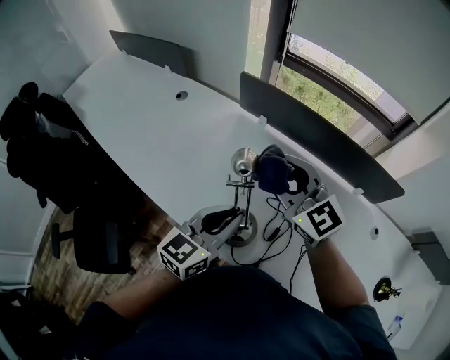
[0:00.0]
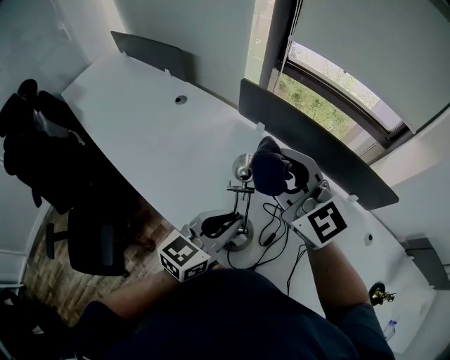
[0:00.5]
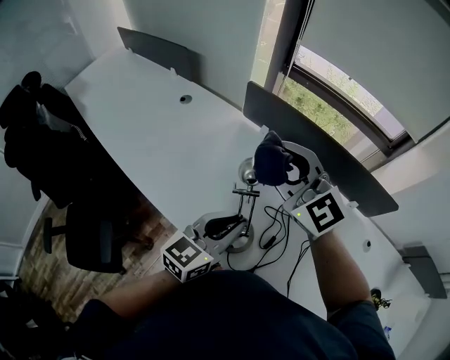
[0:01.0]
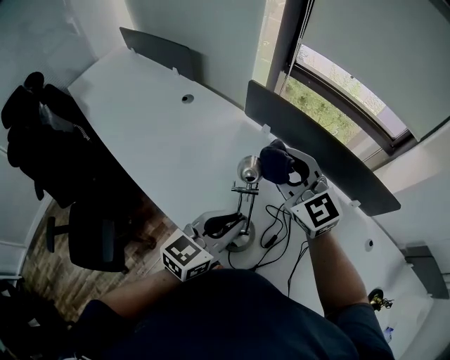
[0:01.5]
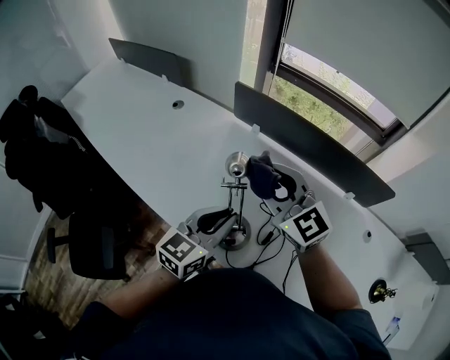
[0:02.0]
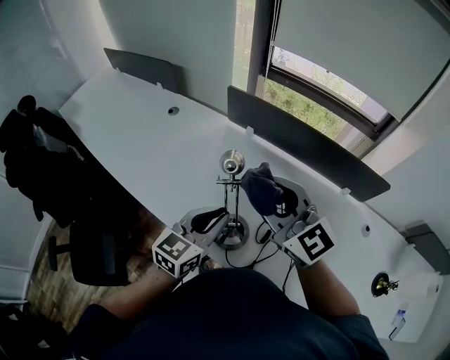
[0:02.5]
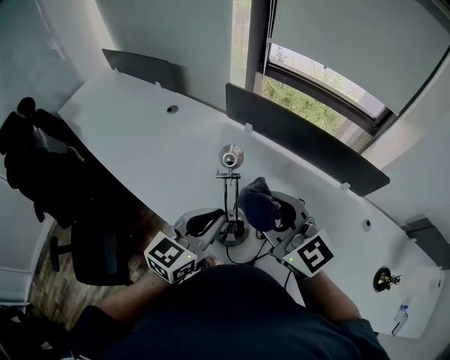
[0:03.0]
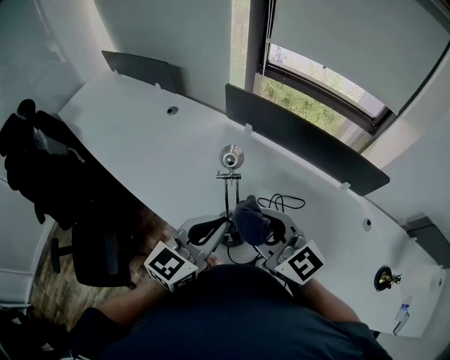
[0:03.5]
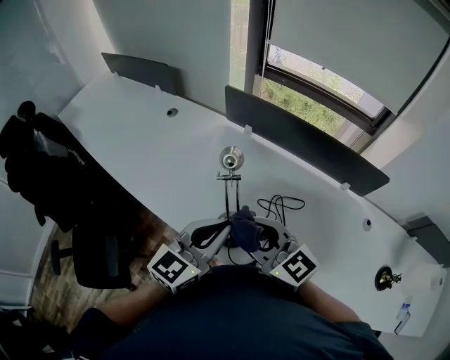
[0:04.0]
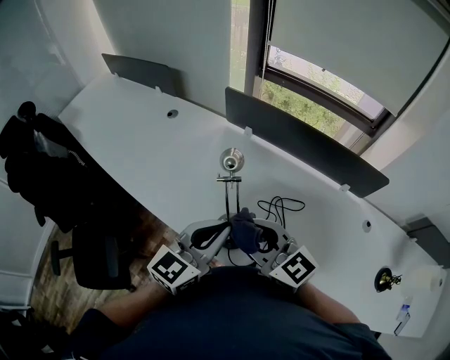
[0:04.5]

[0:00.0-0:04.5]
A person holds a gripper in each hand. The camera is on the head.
0:02.0 to 0:04.5: The right gripper heads backward, covering roughly 15 cm. The left gripper goes roughly 5 cm backward.

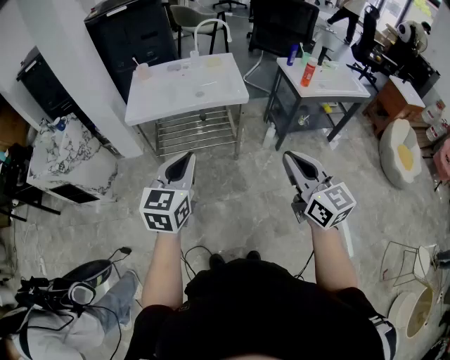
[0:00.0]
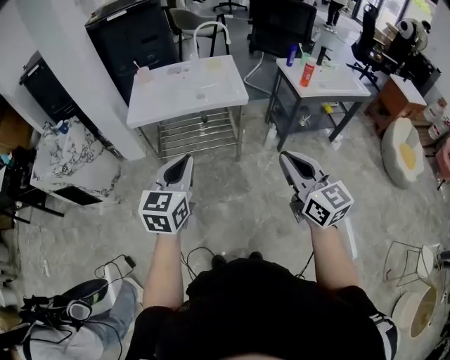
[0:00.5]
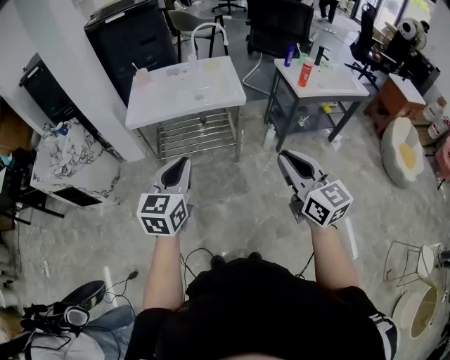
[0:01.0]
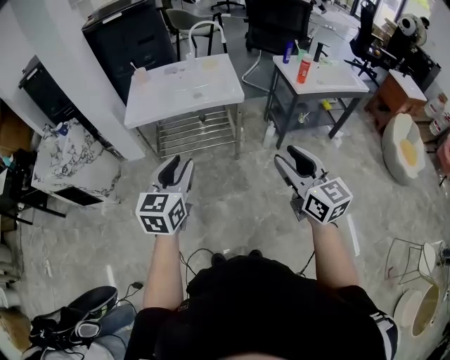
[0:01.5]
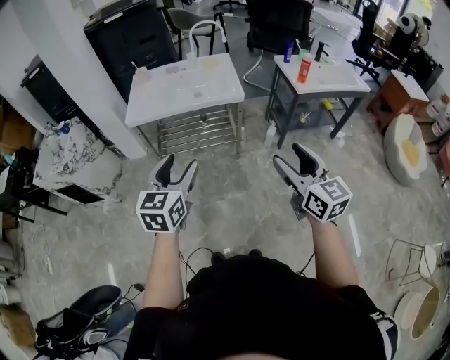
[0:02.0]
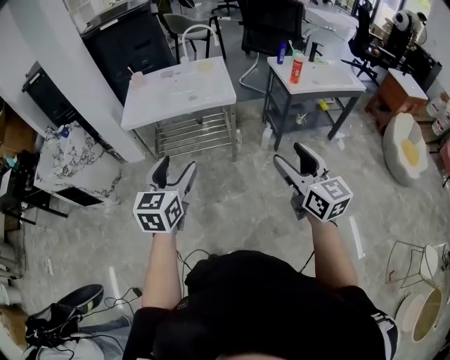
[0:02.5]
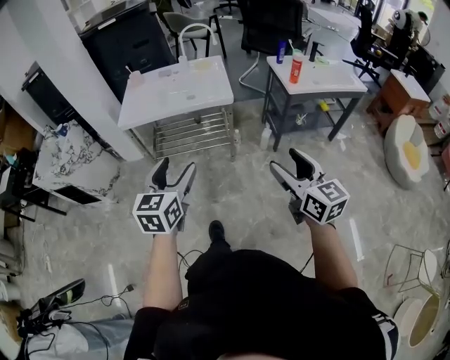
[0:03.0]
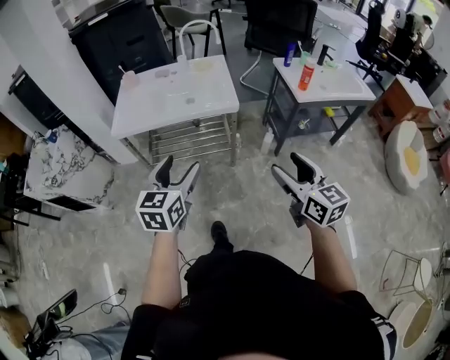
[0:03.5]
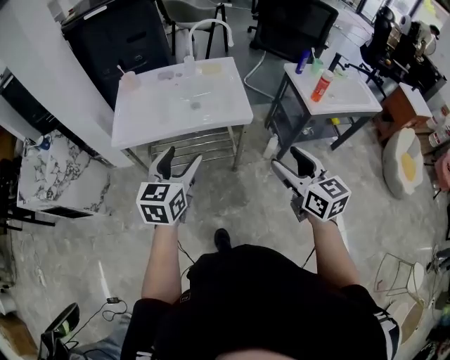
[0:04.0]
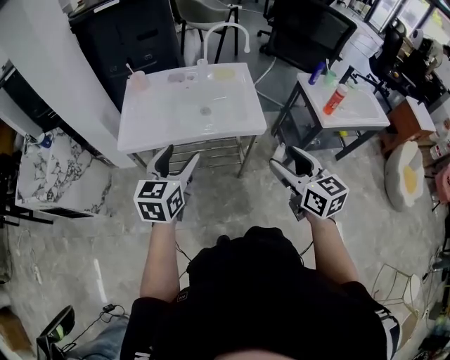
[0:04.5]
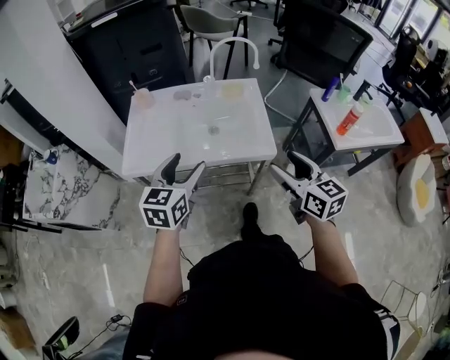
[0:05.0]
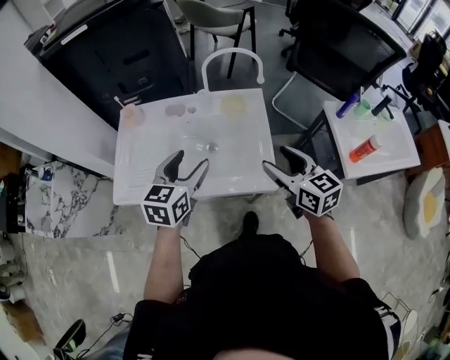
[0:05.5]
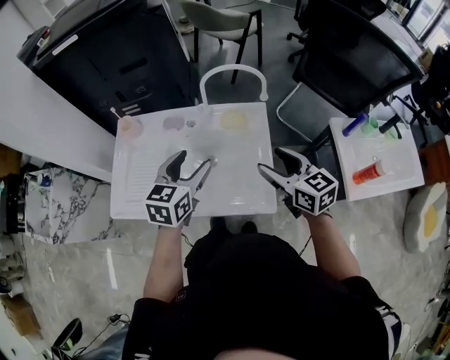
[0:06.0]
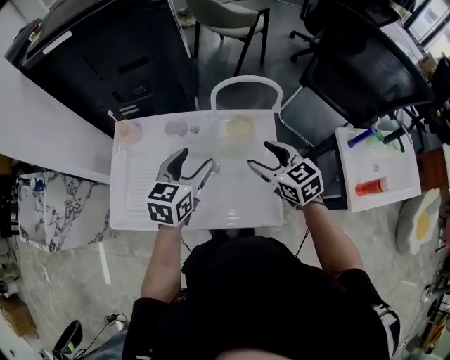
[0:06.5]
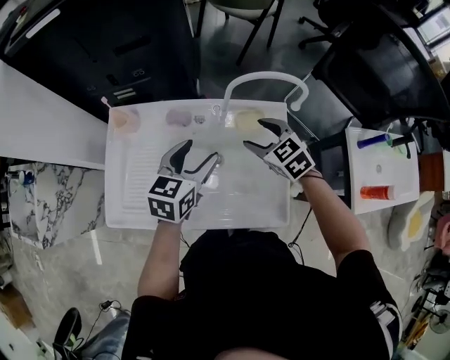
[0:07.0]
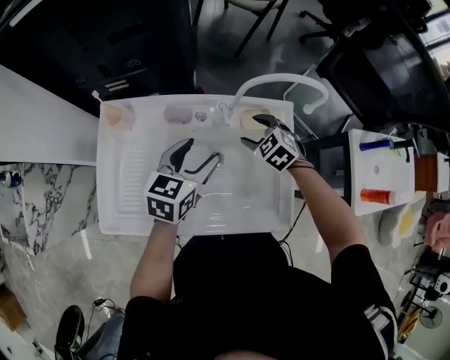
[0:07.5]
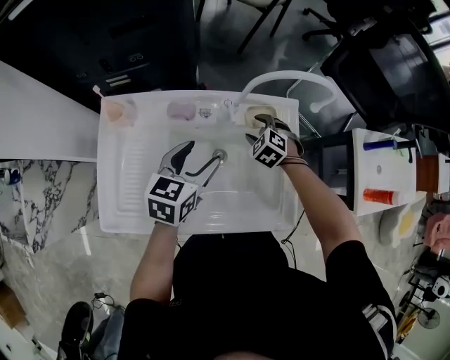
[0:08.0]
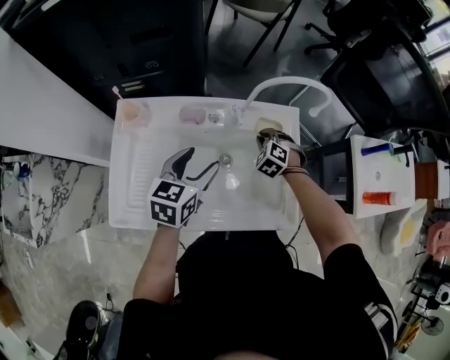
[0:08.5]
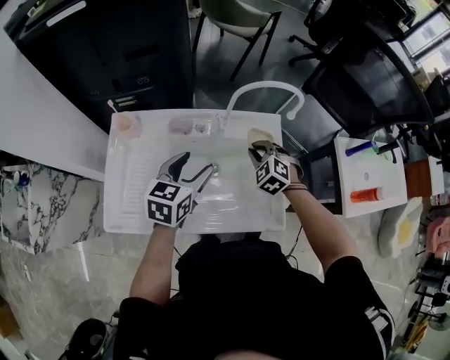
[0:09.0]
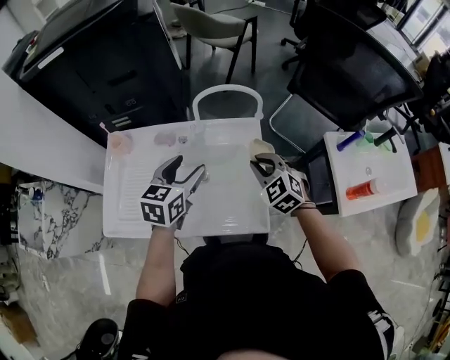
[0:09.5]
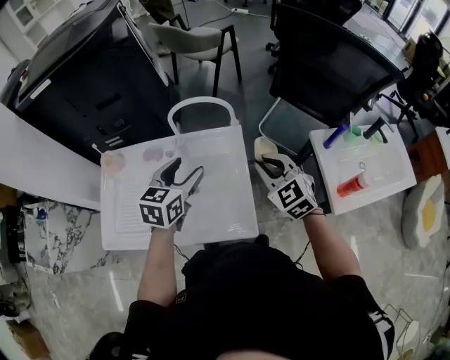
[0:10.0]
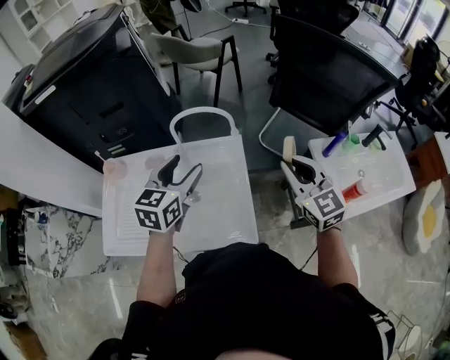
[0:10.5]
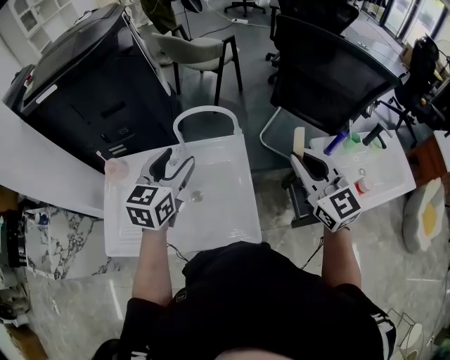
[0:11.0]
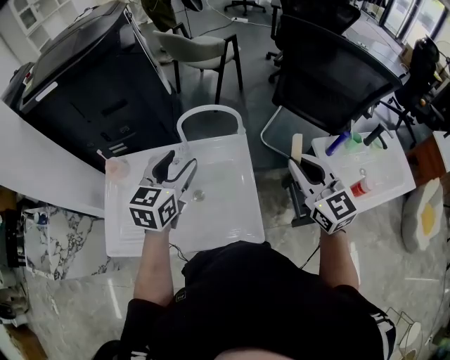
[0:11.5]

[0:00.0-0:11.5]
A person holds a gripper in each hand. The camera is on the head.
0:00.0 to 0:02.0: The left gripper opens. The right gripper opens up.
0:02.0 to 0:04.0: The two grippers go roughly 25 cm forward.
0:04.0 to 0:06.0: Both grippers are carried forward, approximately 40 cm.
0:06.0 to 0:07.5: The right gripper goes about 30 cm forward, downward and to the left, and angles its fingers downward, by approximately 40 degrees, while the left gripper travels forward and downward by some 15 cm.
0:07.5 to 0:09.5: The left gripper travels upward and to the right by about 10 cm, while the right gripper shifts roughly 20 cm upward, to the right and backward, and closes.
0:09.5 to 0:11.5: The right gripper moves upward and to the right, about 20 cm, and tilts its fingers some 30 degrees upward. The left gripper moves upward, some 10 cm.

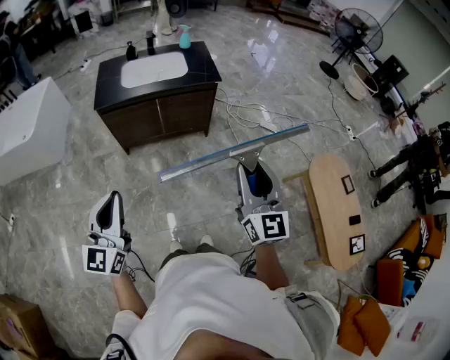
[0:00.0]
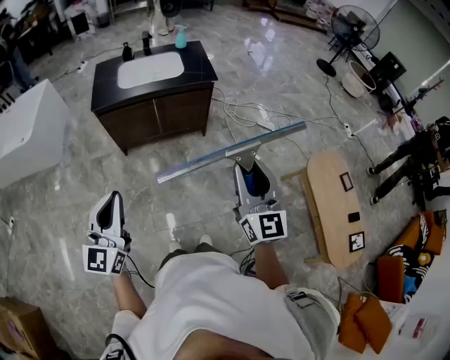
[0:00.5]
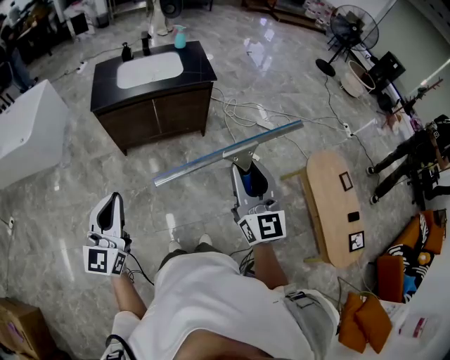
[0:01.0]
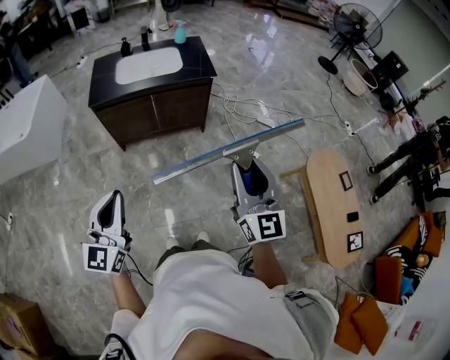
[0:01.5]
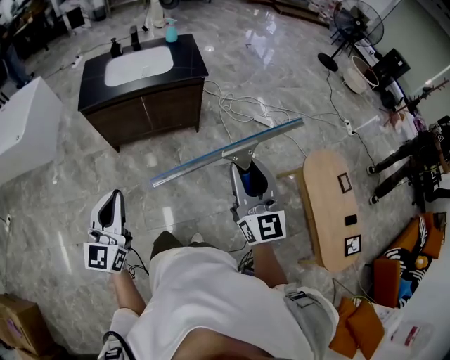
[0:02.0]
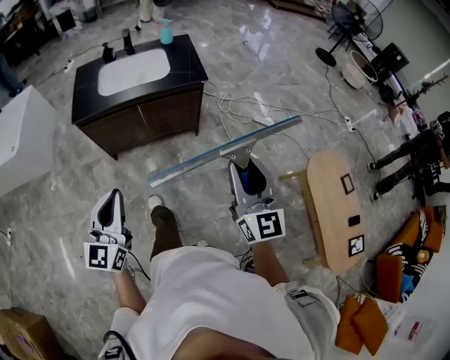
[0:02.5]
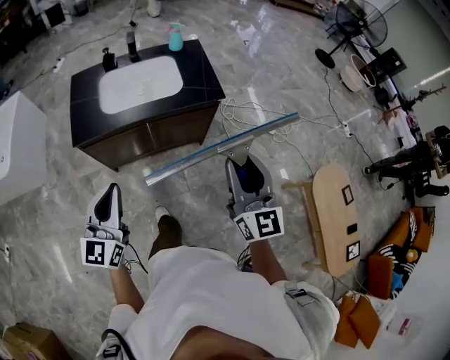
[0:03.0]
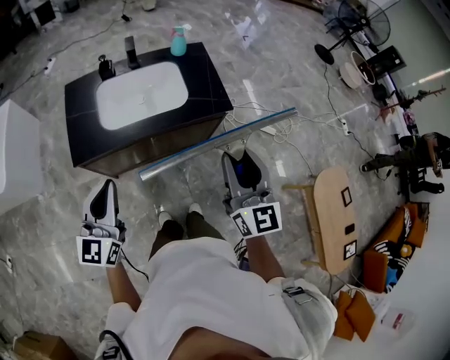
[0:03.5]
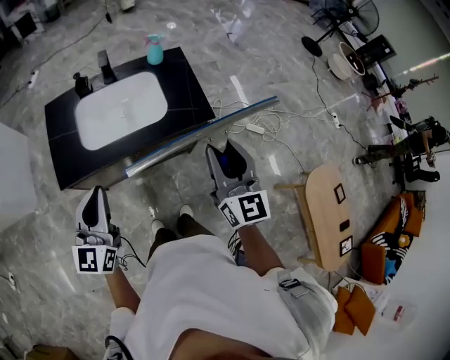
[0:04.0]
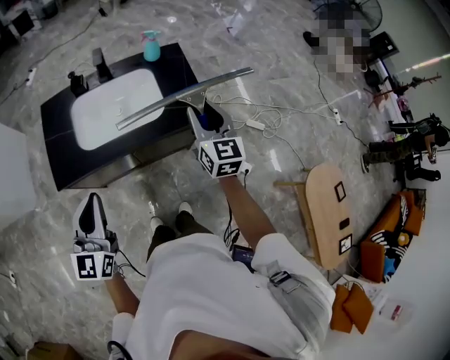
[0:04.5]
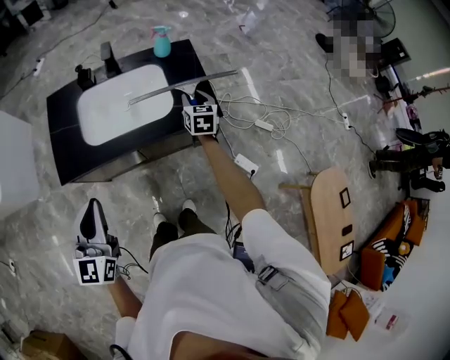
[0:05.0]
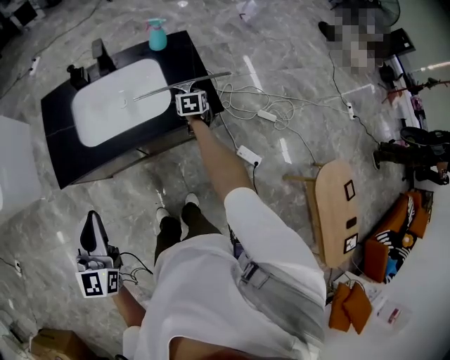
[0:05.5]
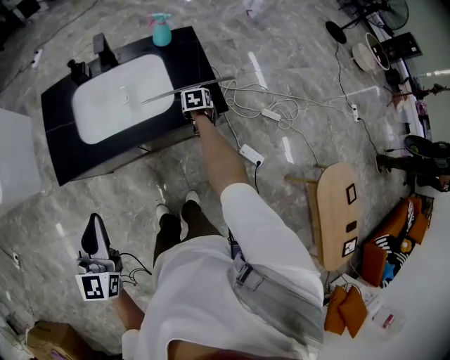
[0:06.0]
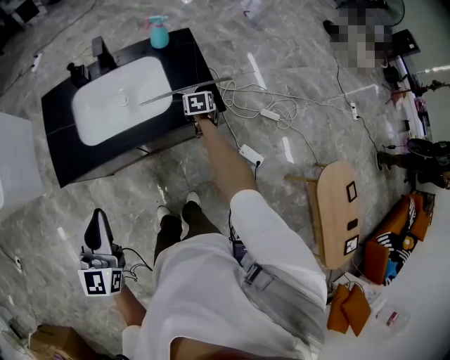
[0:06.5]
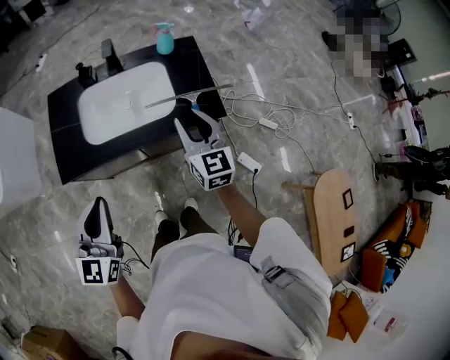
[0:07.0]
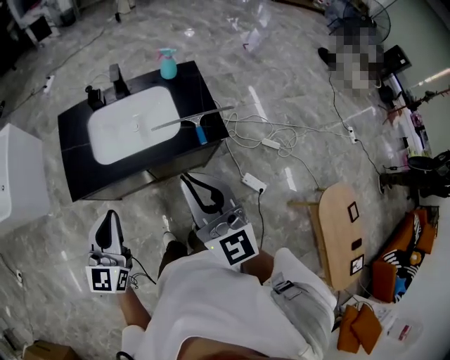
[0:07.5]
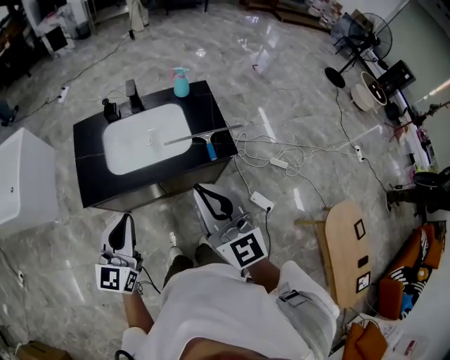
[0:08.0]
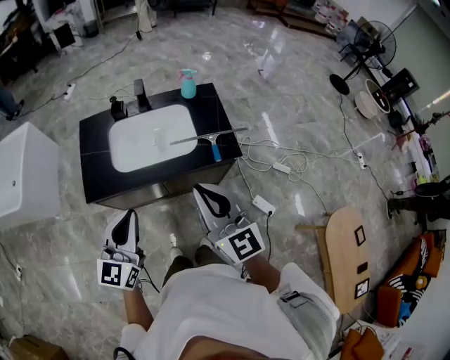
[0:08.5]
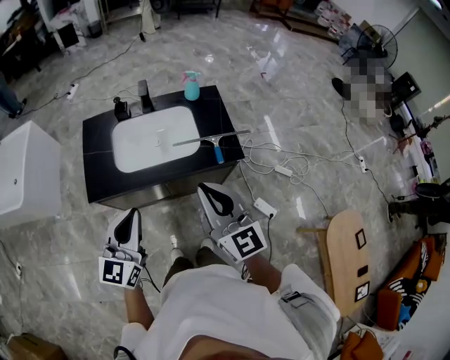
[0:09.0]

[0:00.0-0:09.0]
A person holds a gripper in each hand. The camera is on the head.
0:00.0 to 0:02.0: The left gripper goes some 10 cm to the right and forward; the right gripper travels to the right by about 5 cm.
0:02.0 to 0:04.5: The two grippers travel together, forward, roughly 60 cm.
0:04.5 to 0:07.0: The right gripper shifts about 5 cm to the left, and moves about 35 cm downward and comes back.
0:07.0 to 0:09.0: The right gripper shifts some 20 cm backward and upward, and closes its fingers.

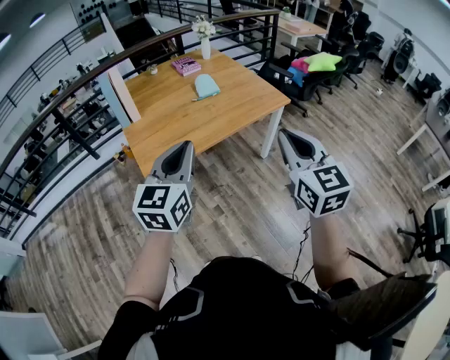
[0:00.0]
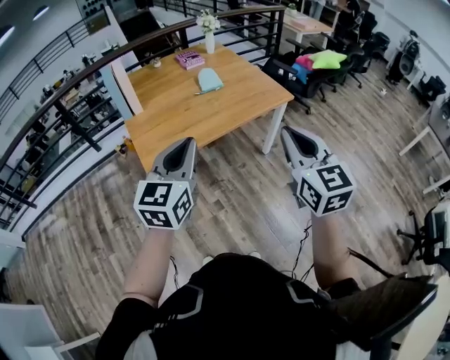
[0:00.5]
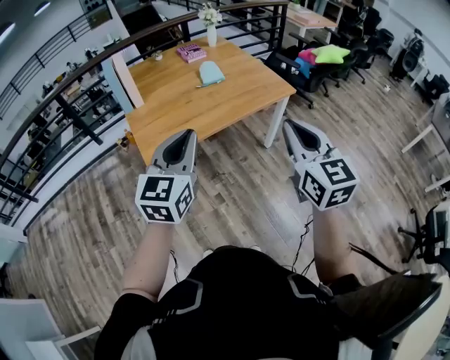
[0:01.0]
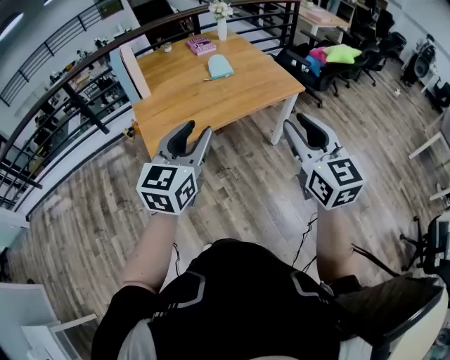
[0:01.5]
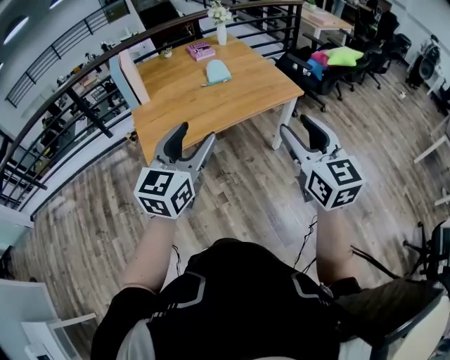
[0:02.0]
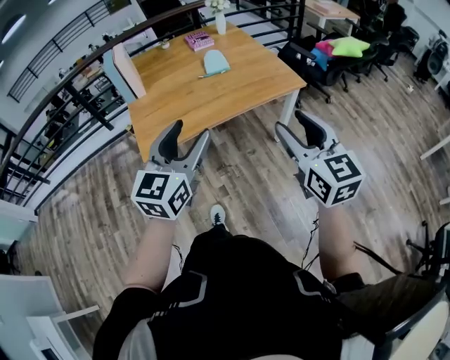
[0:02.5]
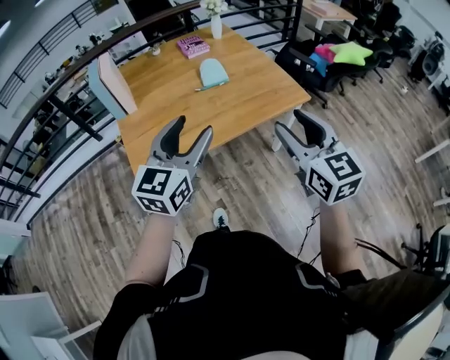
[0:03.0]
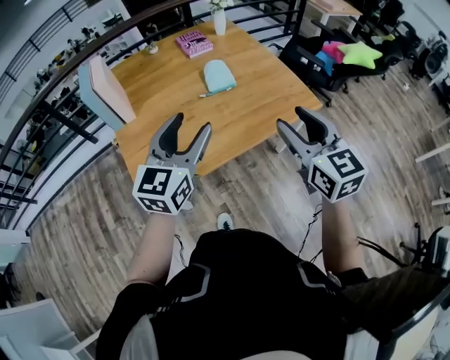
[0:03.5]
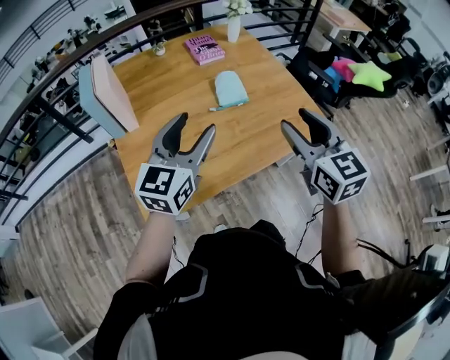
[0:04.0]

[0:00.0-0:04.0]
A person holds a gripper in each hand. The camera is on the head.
0:00.0 to 0:02.0: Both grippers move to the right, approximately 5 cm. The left gripper opens up; the right gripper opens its fingers.
0:02.0 to 0:04.0: Both grippers travel together forward, some 35 cm.
